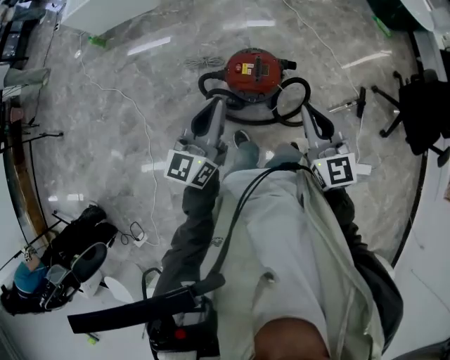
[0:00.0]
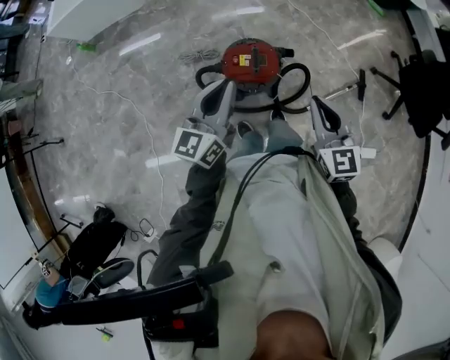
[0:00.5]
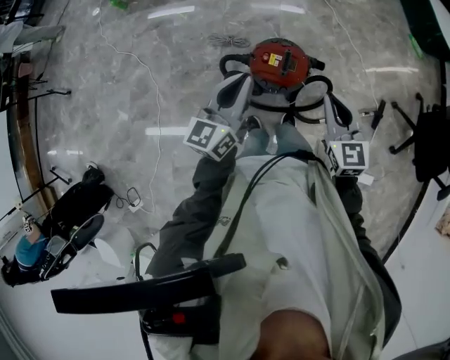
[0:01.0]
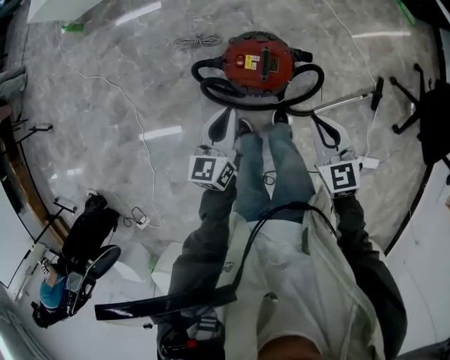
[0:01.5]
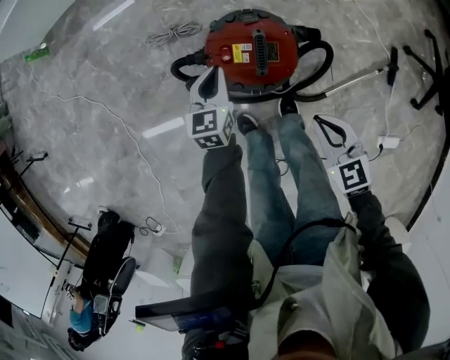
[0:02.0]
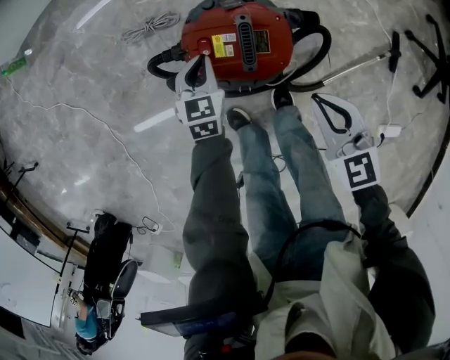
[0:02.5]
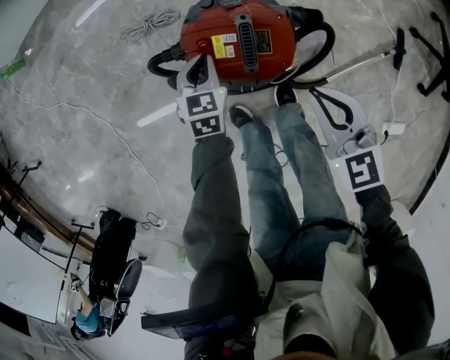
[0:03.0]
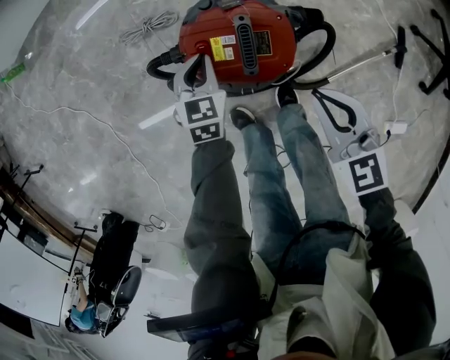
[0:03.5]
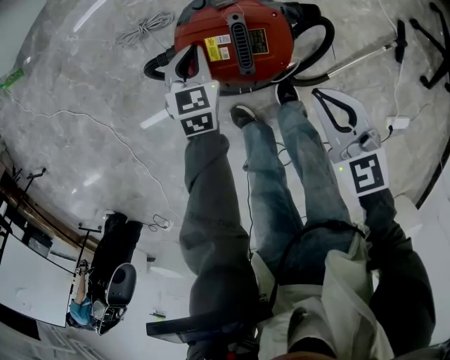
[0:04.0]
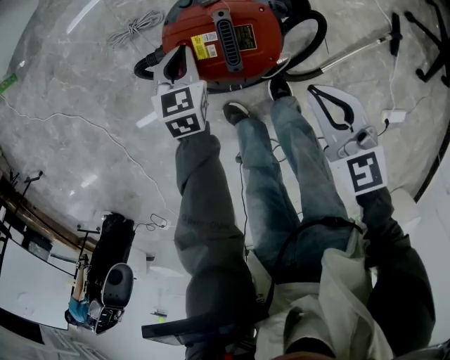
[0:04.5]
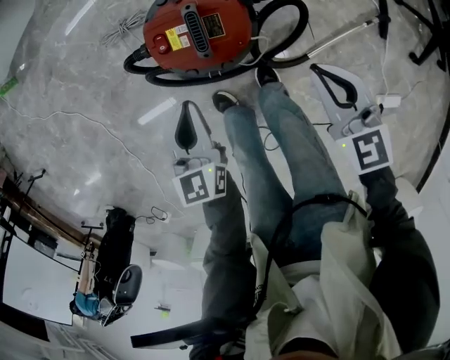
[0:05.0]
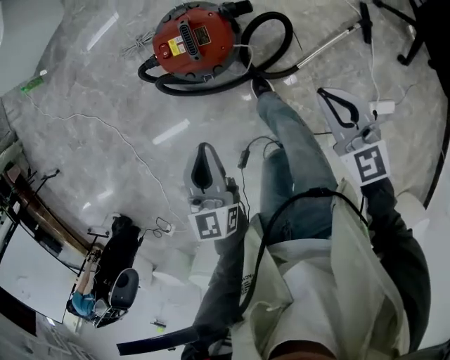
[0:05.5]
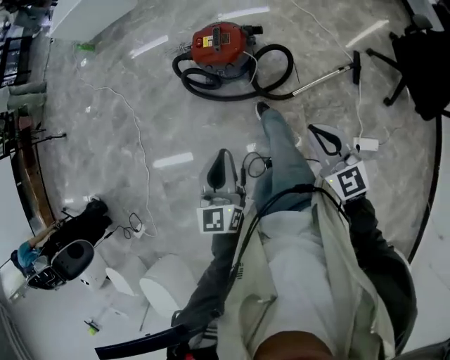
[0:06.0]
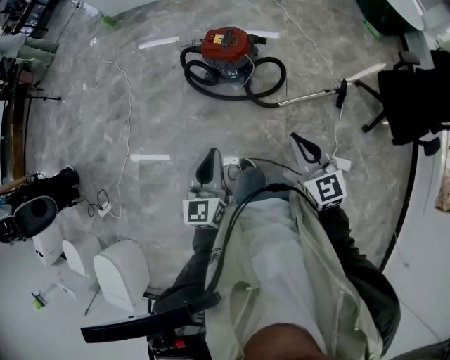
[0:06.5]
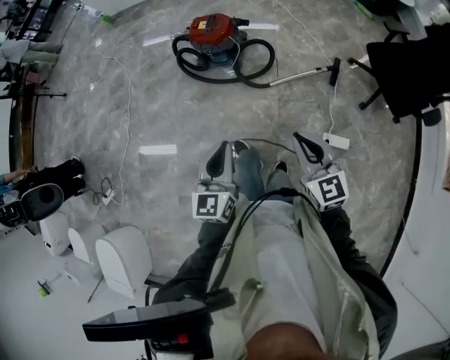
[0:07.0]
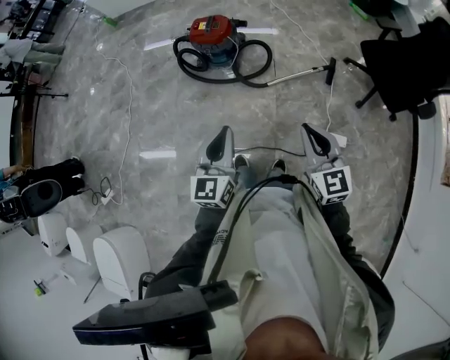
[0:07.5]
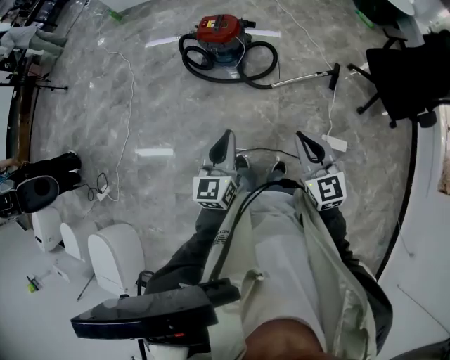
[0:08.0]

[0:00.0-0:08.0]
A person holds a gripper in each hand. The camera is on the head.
0:00.0 to 0:02.0: The left gripper is displaced downward and forward by approximately 50 cm, and tilts its fingers some 40 degrees downward; the right gripper is displaced downward by some 40 cm, and points its fingers some 30 degrees further downward.
0:02.0 to 0:04.0: The right gripper is displaced forward by about 5 cm. The left gripper travels downward by about 10 cm, and turns by approximately 20 degrees.
0:04.0 to 0:06.0: Both grippers travel together backward and upward, approximately 60 cm. The left gripper points its fingers roughly 30 degrees further upward.
0:06.0 to 0:08.0: Both grippers travel together backward, some 25 cm.

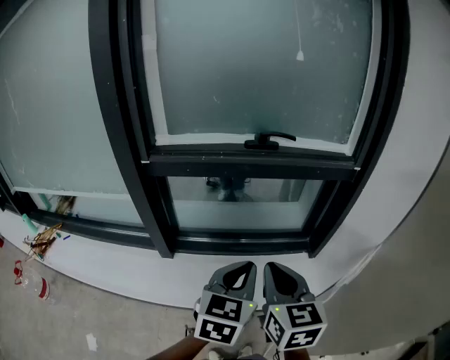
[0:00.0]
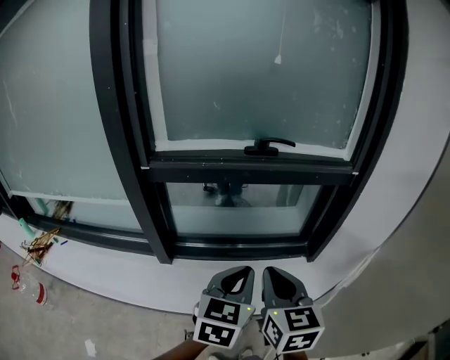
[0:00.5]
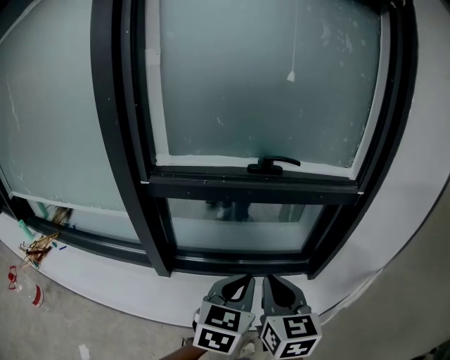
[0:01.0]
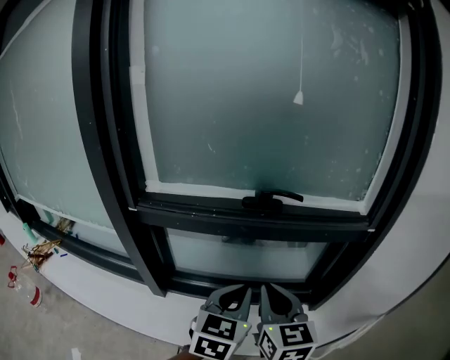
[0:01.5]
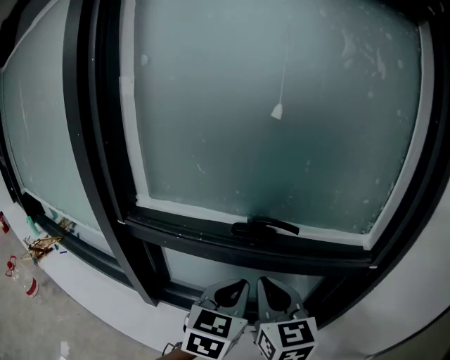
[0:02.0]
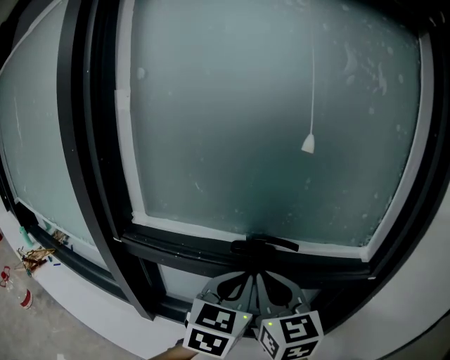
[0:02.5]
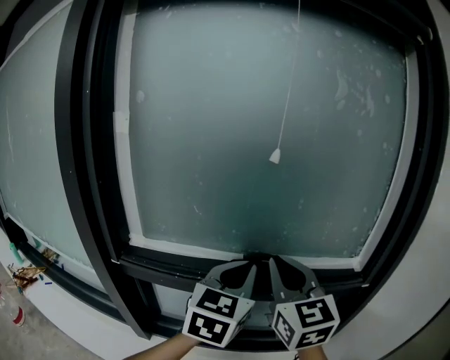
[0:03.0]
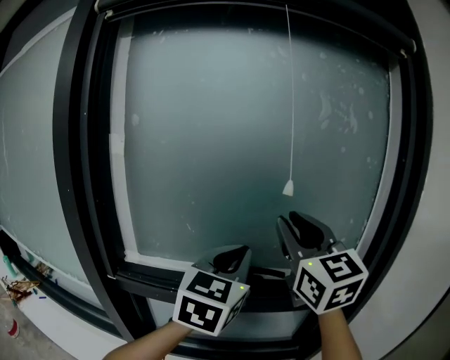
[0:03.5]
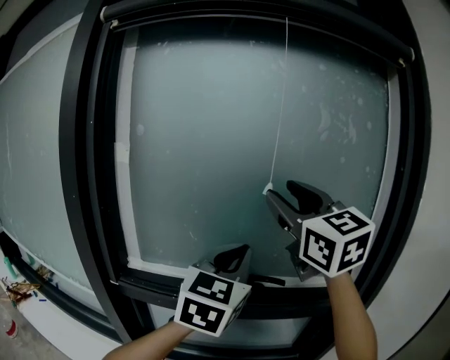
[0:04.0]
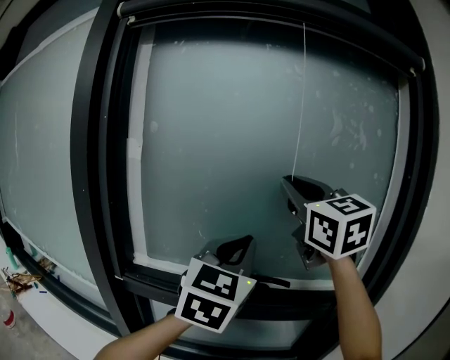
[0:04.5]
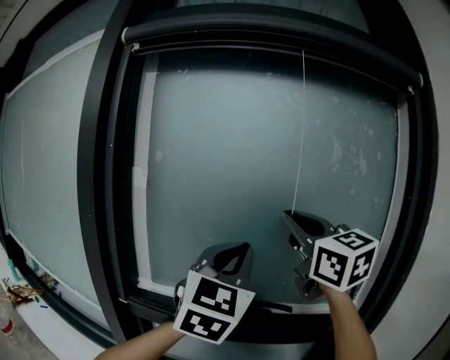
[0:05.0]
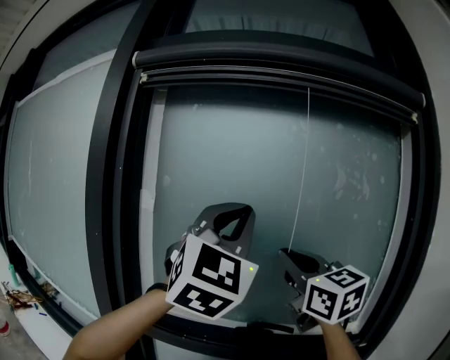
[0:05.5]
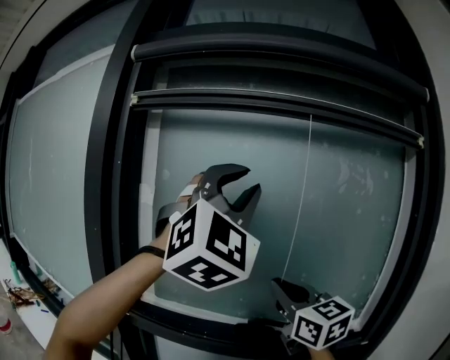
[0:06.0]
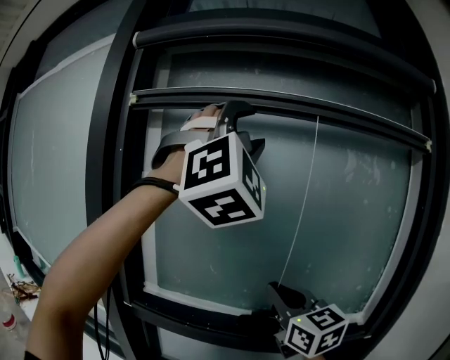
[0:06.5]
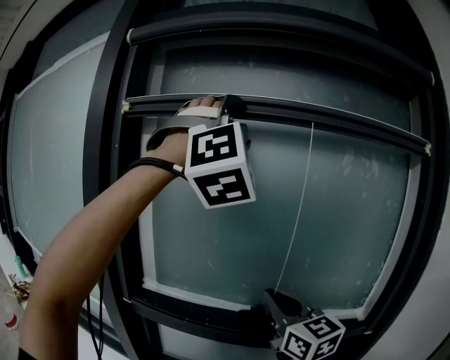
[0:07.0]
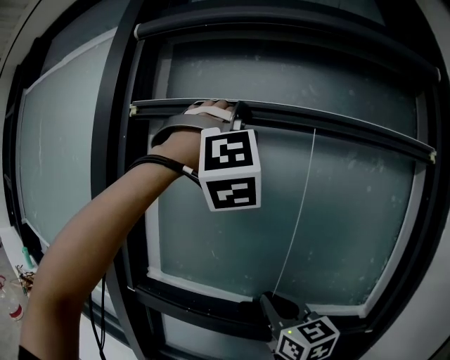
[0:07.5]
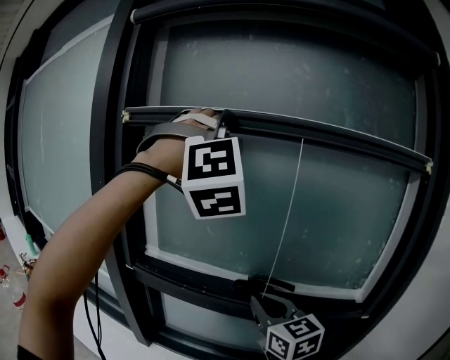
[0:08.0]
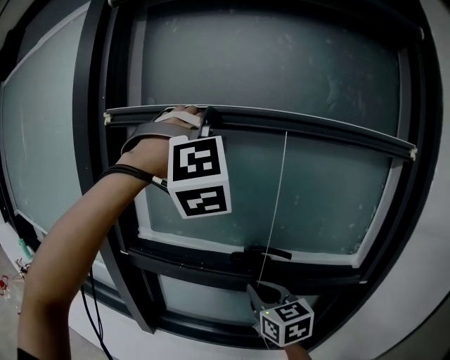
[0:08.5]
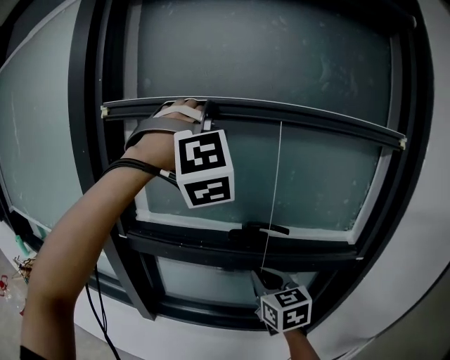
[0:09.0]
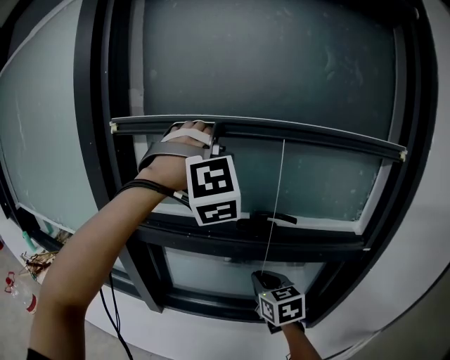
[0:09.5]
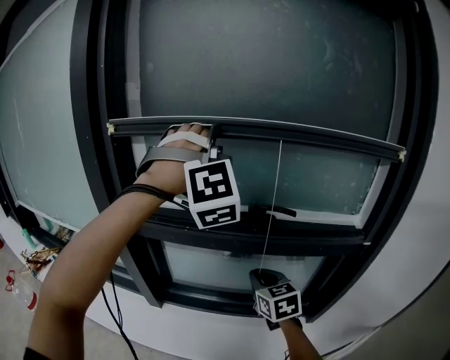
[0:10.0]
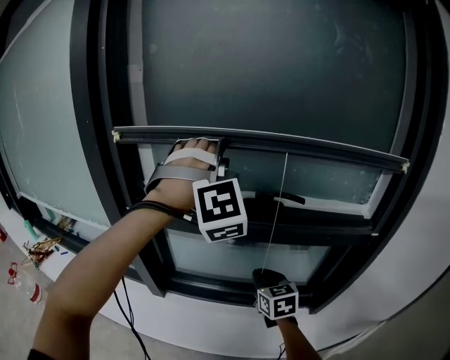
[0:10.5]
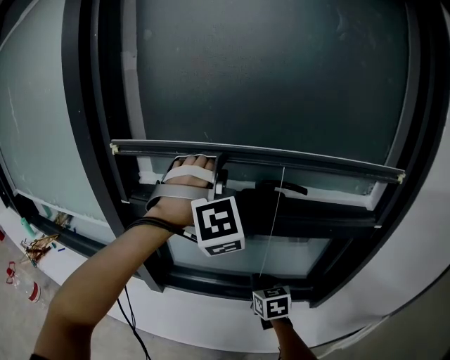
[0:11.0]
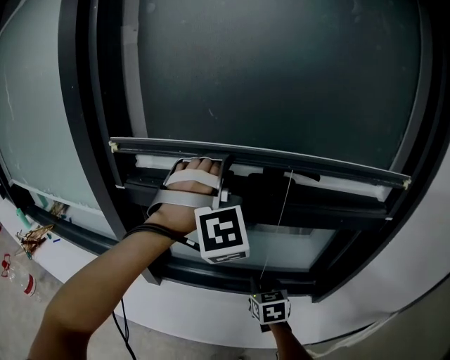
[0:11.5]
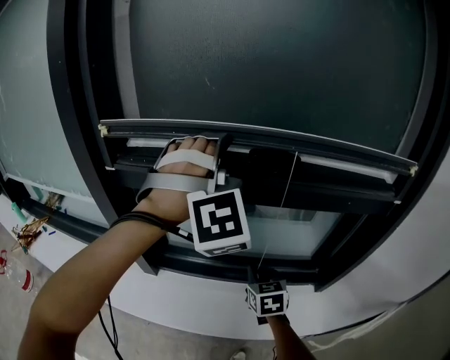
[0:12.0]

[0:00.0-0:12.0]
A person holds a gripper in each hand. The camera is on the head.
0:00.0 to 0:02.0: The grippers both shift forward by approximately 35 cm.
0:02.0 to 0:04.0: Both grippers move upward, approximately 30 cm. The right gripper changes its angle by approximately 30 degrees, and opens its fingers. The left gripper changes its angle by approximately 20 degrees.
0:04.0 to 0:06.0: The right gripper heads downward, covering some 10 cm, and closes up; the left gripper goes approximately 25 cm upward, twists about 50 degrees clockwise, seen from behind, and opens up.
0:06.0 to 0:08.0: The left gripper travels forward by approximately 5 cm, swivels approximately 40 degrees, and opens, then closes again. Meanwhile the right gripper shifts some 20 cm downward.
0:08.0 to 0:10.0: Both grippers move downward, some 20 cm. The right gripper changes its angle by some 20 degrees.
0:10.0 to 0:12.0: Both grippers travel together downward, roughly 25 cm.

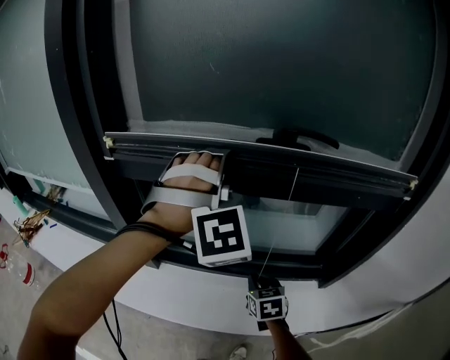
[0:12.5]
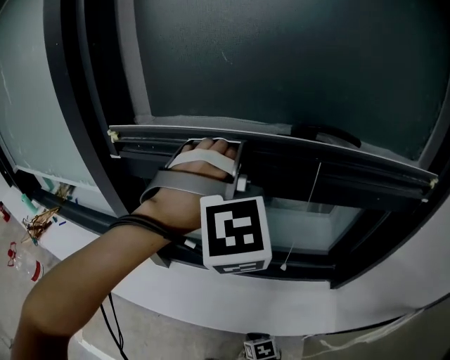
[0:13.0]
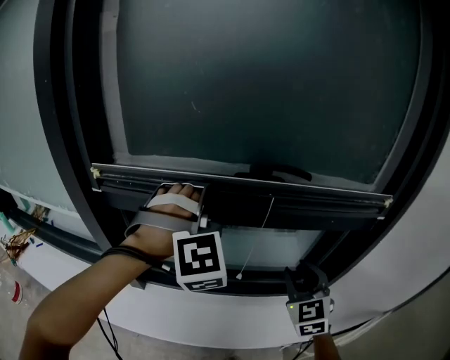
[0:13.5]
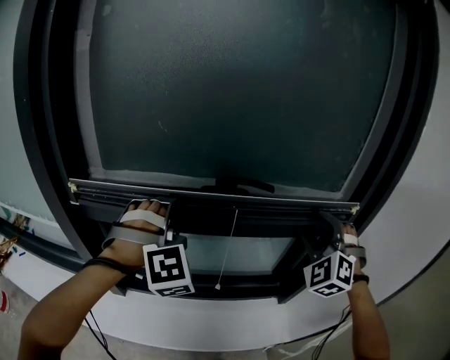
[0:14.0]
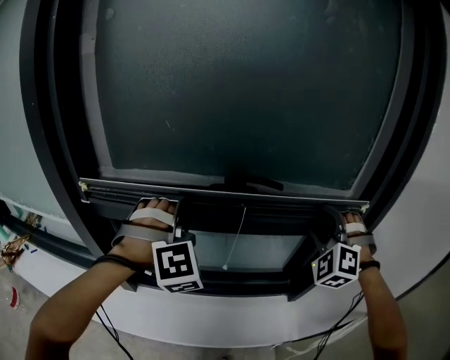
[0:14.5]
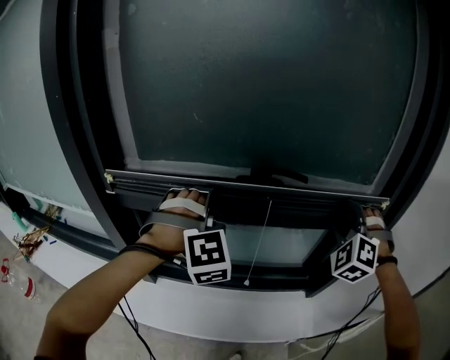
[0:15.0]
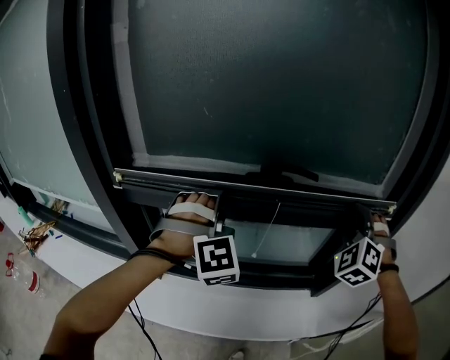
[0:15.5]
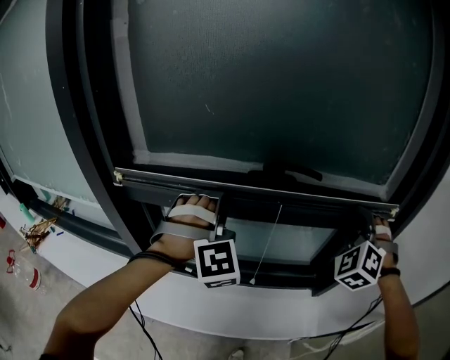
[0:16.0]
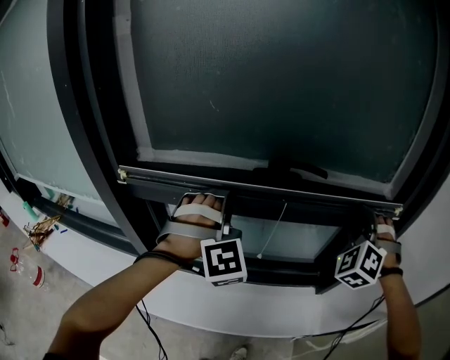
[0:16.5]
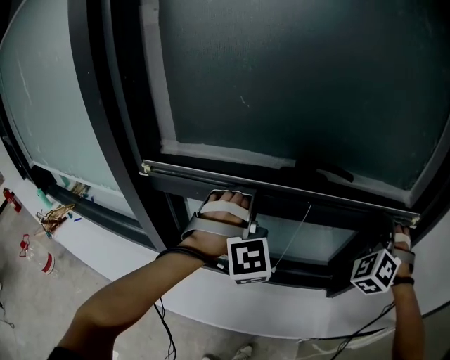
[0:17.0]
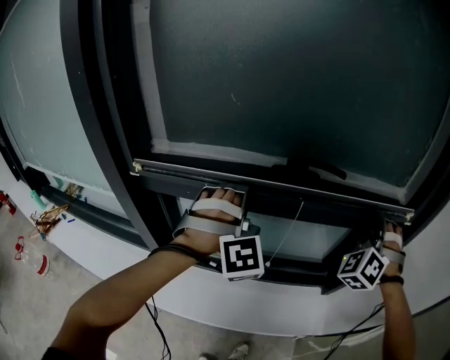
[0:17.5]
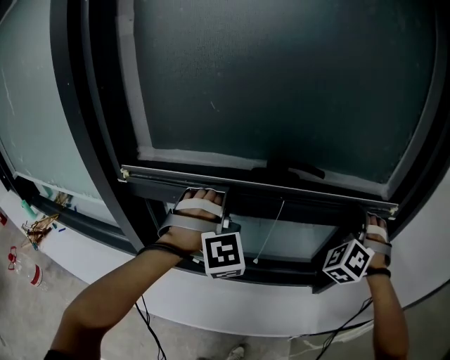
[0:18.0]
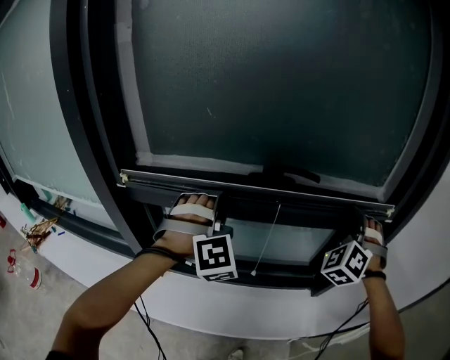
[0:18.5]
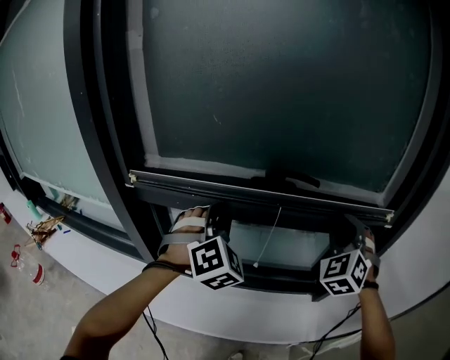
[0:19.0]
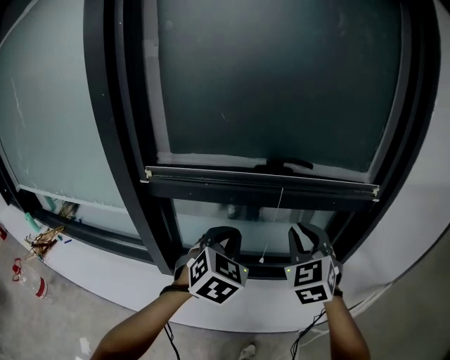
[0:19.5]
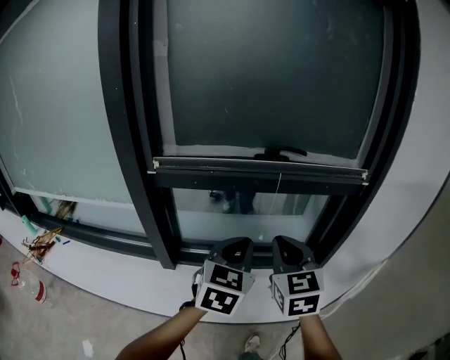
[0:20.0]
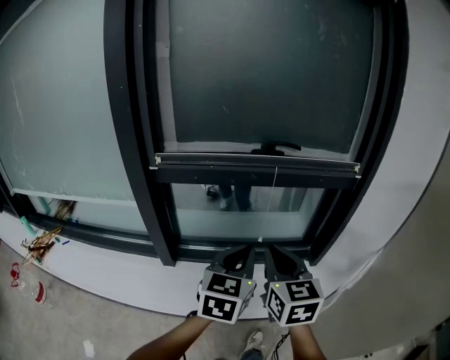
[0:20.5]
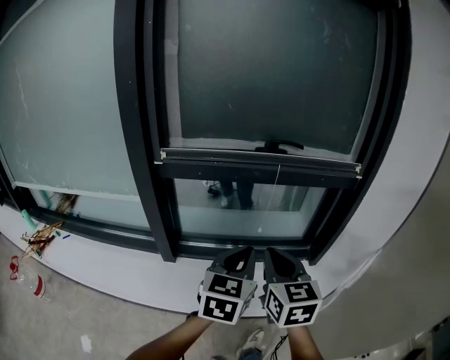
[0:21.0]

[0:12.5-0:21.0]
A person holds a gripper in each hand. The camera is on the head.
0:12.5 to 0:14.5: The right gripper goes some 40 cm upward and to the right, rotates around the line of its fingers by roughly 70 degrees, counterclockwise from behind, and opens up.
0:14.5 to 0:16.5: The right gripper closes its fingers.
0:16.5 to 0:19.0: The right gripper turns by about 20 degrees. Meanwhile the left gripper changes its angle by approximately 20 degrees, and closes up.
0:19.0 to 0:21.0: The right gripper heads backward and to the left, covering about 40 cm, rolls clockwise, seen from behind, by some 60 degrees, and closes up, while the left gripper goes approximately 35 cm backward, and rotates around the line of its fingers by about 60 degrees, counterclockwise from behind.
